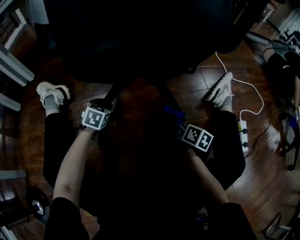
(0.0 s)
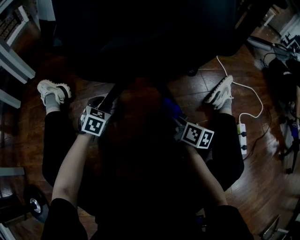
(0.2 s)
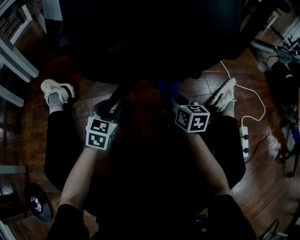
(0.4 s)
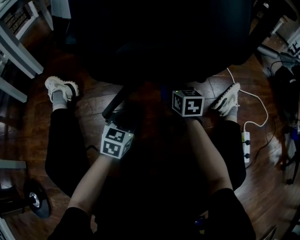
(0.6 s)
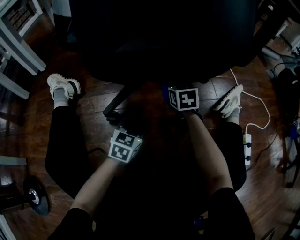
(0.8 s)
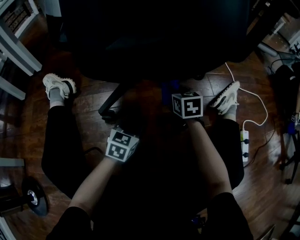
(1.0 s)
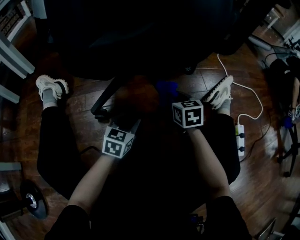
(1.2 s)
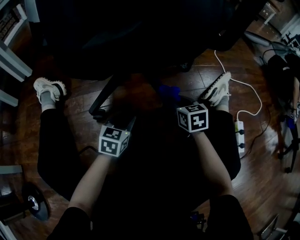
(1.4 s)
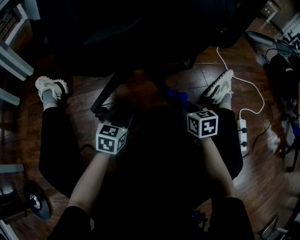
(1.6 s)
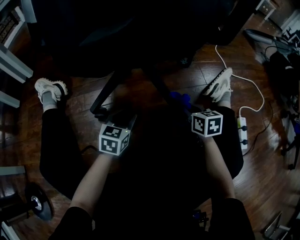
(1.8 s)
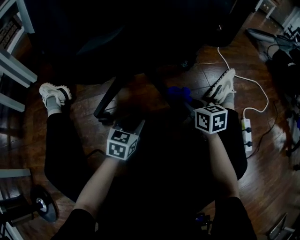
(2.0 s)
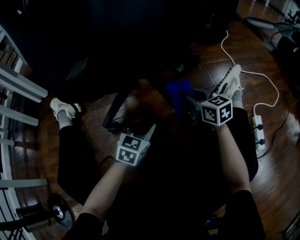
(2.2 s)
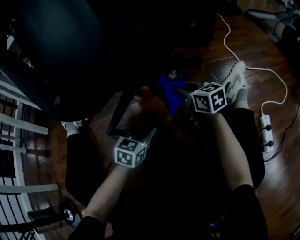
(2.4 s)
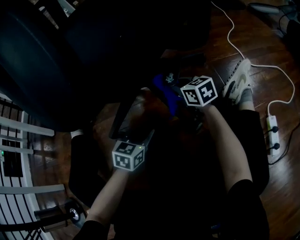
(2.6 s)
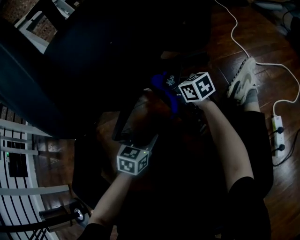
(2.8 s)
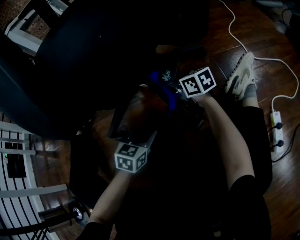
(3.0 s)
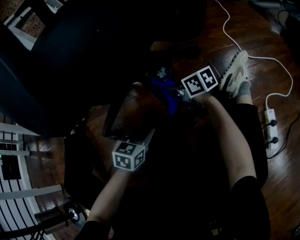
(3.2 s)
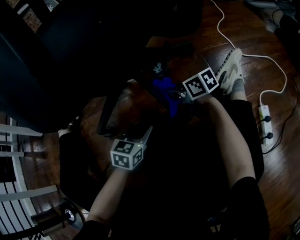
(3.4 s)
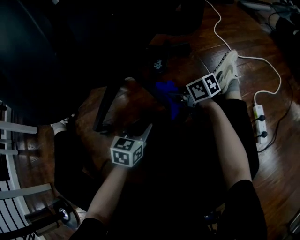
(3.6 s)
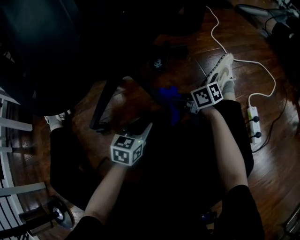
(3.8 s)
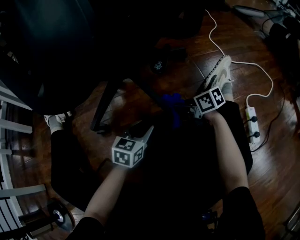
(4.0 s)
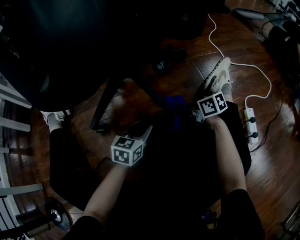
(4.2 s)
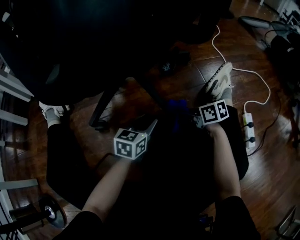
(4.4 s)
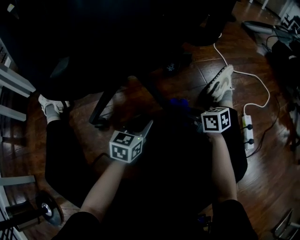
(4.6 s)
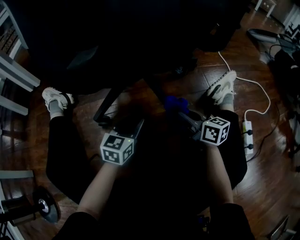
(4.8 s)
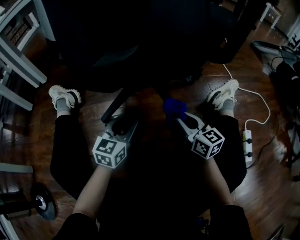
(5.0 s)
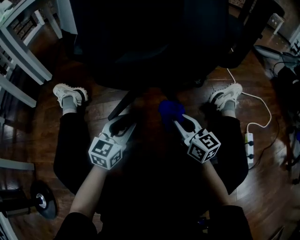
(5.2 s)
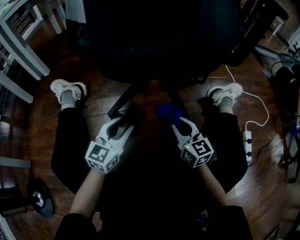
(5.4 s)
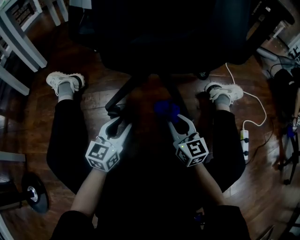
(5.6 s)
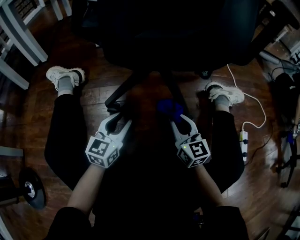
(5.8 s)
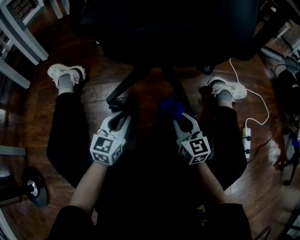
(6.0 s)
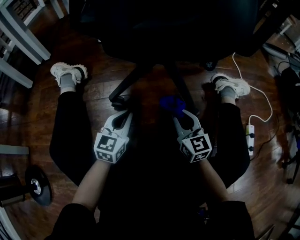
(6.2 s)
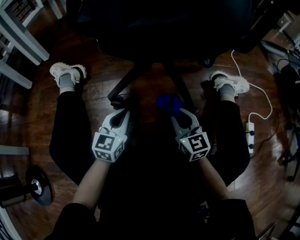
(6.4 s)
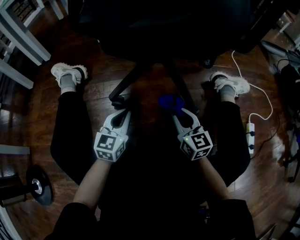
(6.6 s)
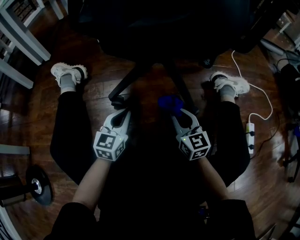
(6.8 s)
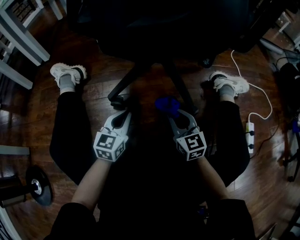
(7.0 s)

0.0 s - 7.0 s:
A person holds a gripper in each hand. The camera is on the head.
0.0 s - 1.4 s: The right gripper goes roughly 10 cm forward and upward, and twists some 50 degrees counterclockwise, seen from behind, while the left gripper travels to the right and backward by some 15 cm, and changes its angle by roughly 20 degrees.
1.4 s - 2.8 s: The right gripper is displaced forward by some 15 cm, and rotates roughly 30 degrees.
2.8 s - 4.2 s: The left gripper shifts by approximately 5 cm; the right gripper goes about 20 cm backward, and changes its angle by roughly 30 degrees.
4.2 s - 5.6 s: The two grippers go some 20 cm to the left and upward. The right gripper rotates some 50 degrees, while the left gripper turns by some 30 degrees.
5.6 s - 7.0 s: The left gripper closes up.

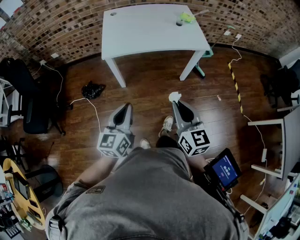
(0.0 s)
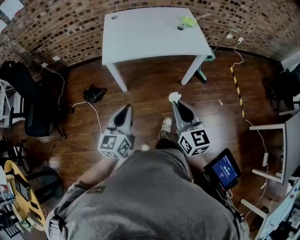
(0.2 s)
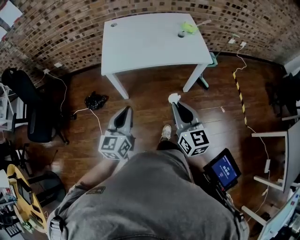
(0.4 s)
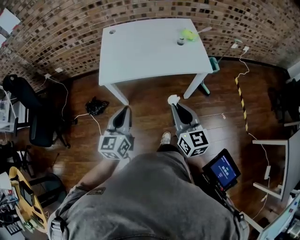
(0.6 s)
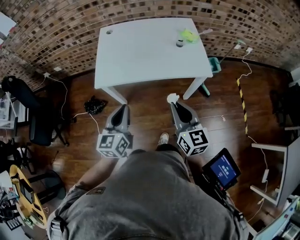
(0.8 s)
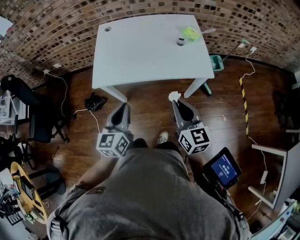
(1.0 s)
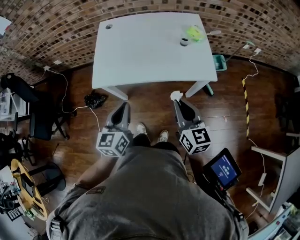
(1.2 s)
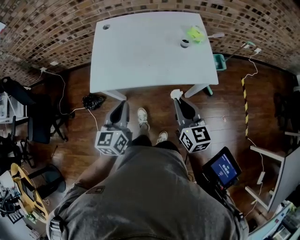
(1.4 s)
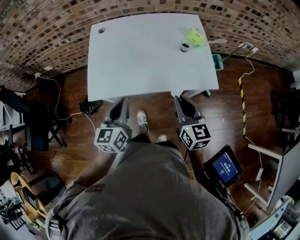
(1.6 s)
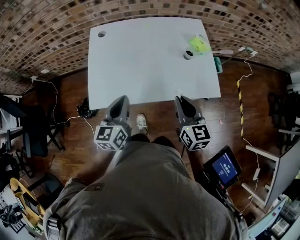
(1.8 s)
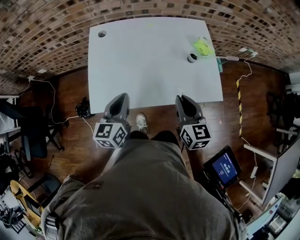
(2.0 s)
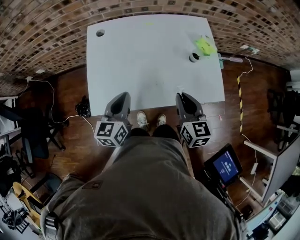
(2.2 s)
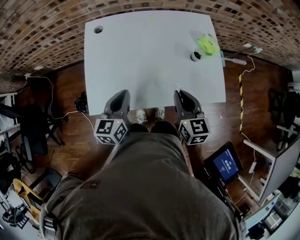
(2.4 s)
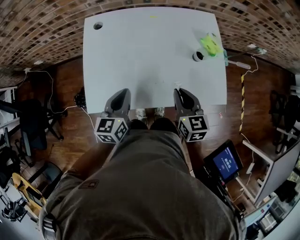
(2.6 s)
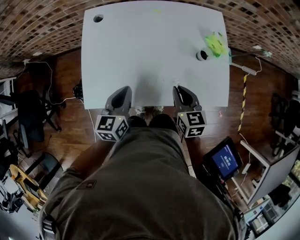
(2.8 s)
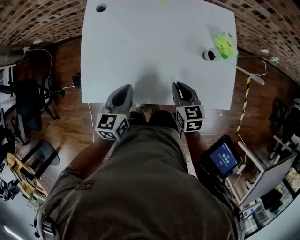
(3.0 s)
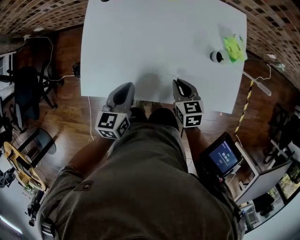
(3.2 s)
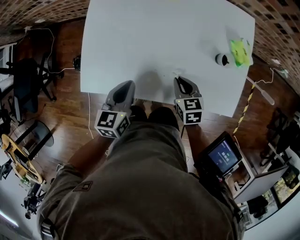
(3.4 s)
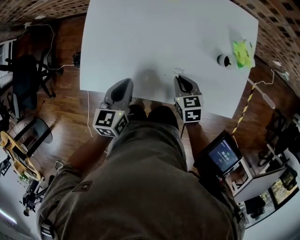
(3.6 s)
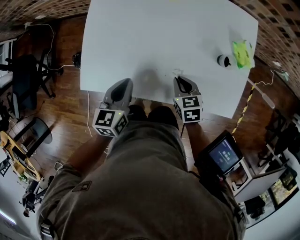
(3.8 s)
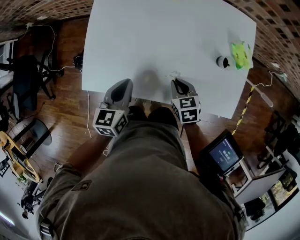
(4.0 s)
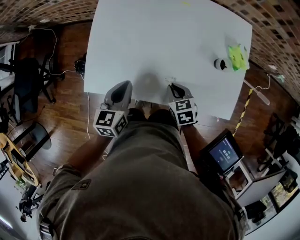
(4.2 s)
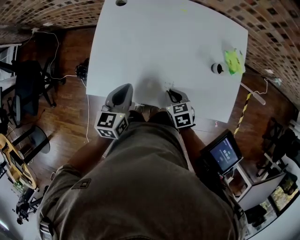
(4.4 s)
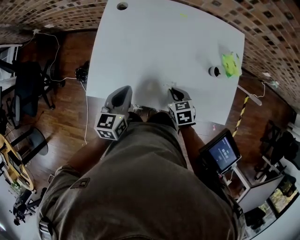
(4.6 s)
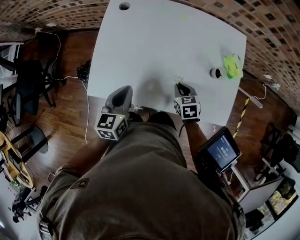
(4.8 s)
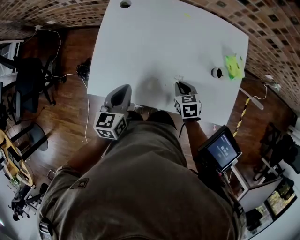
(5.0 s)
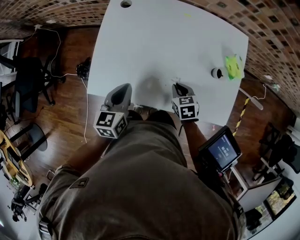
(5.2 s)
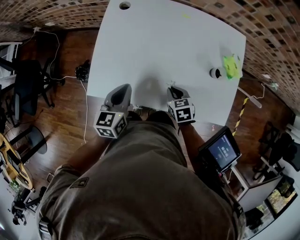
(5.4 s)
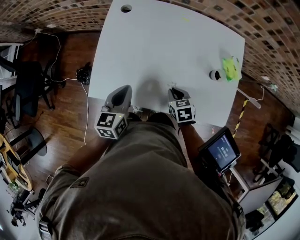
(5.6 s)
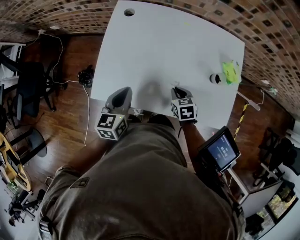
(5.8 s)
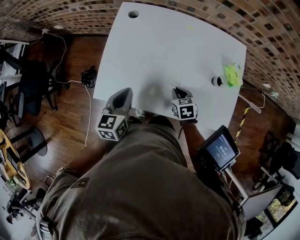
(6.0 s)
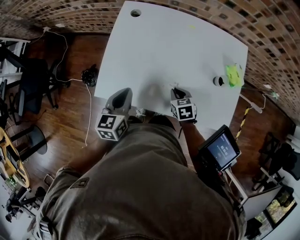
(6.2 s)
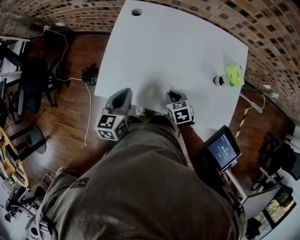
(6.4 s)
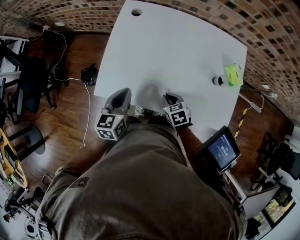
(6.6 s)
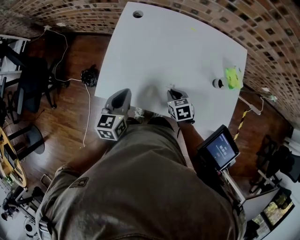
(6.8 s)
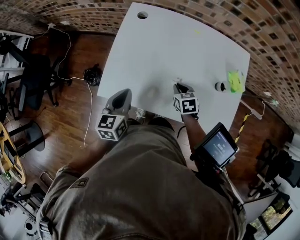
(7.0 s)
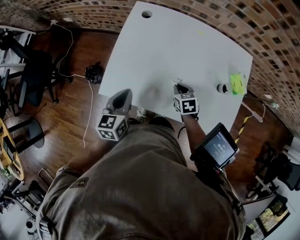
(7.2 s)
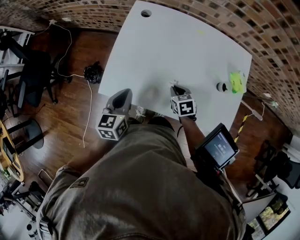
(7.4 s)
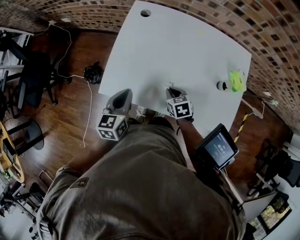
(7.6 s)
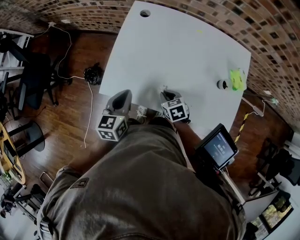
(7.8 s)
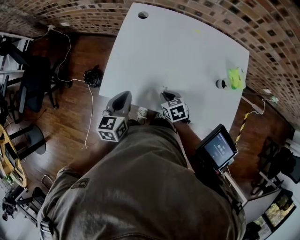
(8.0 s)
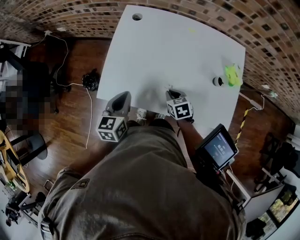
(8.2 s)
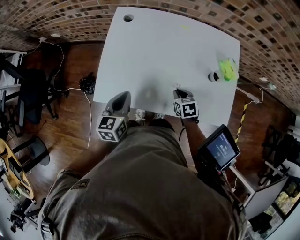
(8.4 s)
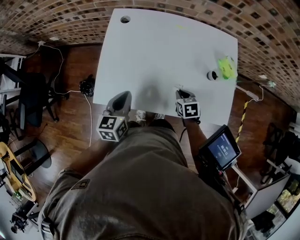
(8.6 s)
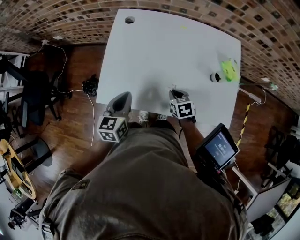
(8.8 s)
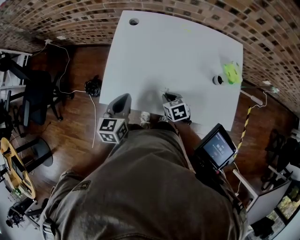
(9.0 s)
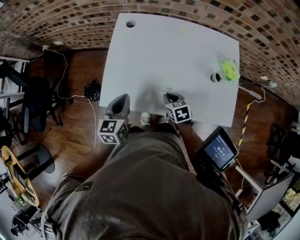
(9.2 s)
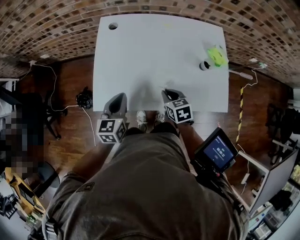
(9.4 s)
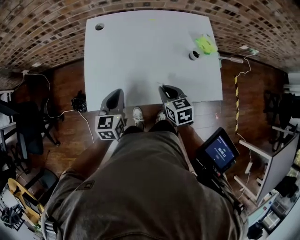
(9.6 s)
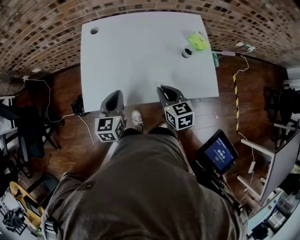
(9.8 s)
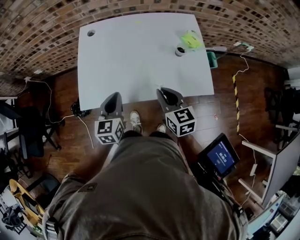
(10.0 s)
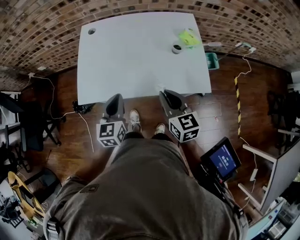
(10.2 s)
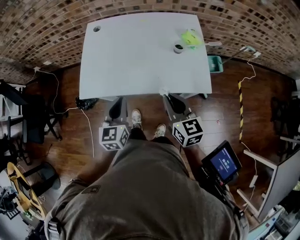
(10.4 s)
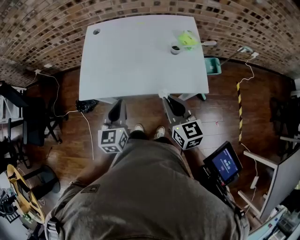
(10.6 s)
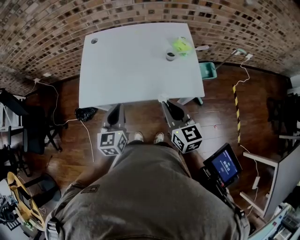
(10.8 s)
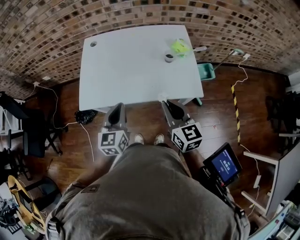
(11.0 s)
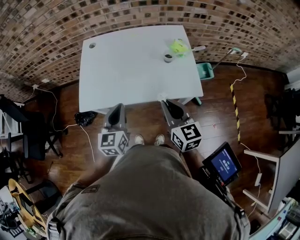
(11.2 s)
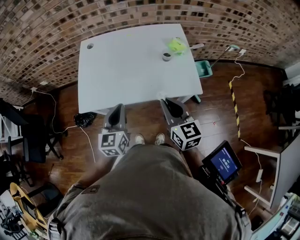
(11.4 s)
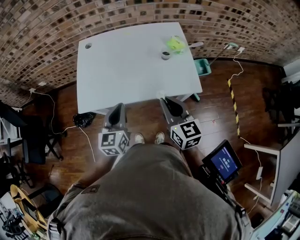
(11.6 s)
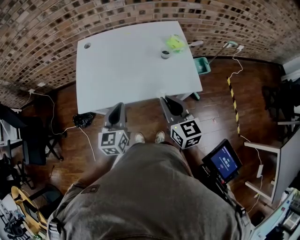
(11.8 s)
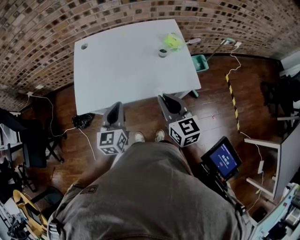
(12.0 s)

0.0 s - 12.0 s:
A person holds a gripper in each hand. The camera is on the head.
0.0 s - 1.6 s: The grippers both shift forward by roughly 35 cm.
1.6 s - 3.0 s: The grippers both shift forward and downward by some 20 cm. The right gripper swivels some 30 degrees.
3.0 s - 4.4 s: The right gripper moves downward and to the left, about 10 cm, and swivels roughly 20 degrees.
4.4 s - 6.0 s: The right gripper travels forward by some 5 cm.
6.0 s - 7.6 s: The right gripper moves to the left, about 5 cm.
7.6 s - 9.0 s: The right gripper moves roughly 10 cm to the right and comes back.
9.0 s - 10.4 s: The right gripper goes approximately 30 cm upward, backward and to the right, and points its fingers roughly 40 degrees further upward, while the left gripper travels backward, to the right and upward by roughly 20 cm.
10.4 s - 12.0 s: The grippers make only small movements.

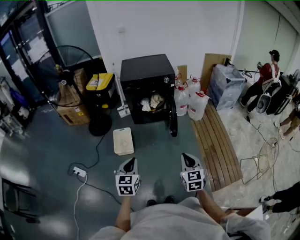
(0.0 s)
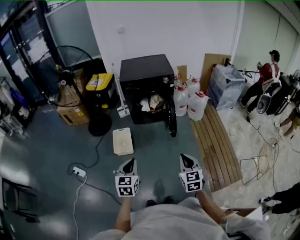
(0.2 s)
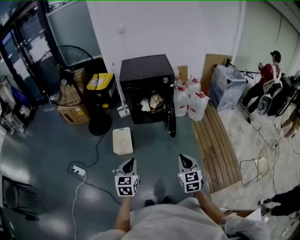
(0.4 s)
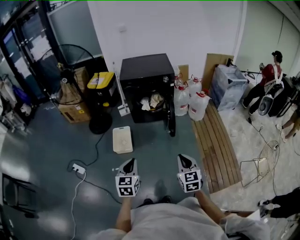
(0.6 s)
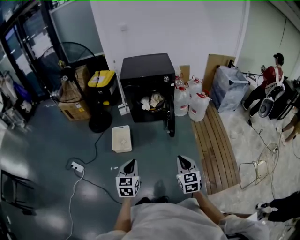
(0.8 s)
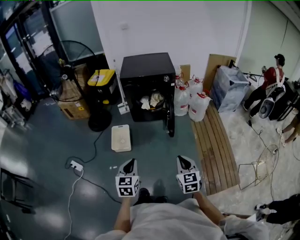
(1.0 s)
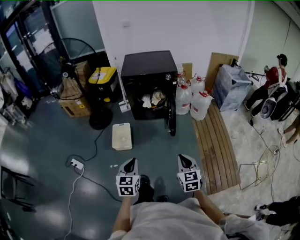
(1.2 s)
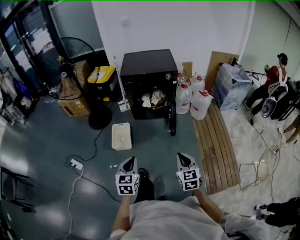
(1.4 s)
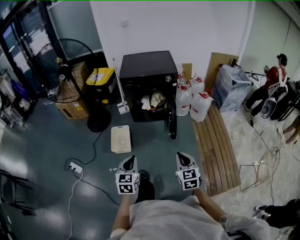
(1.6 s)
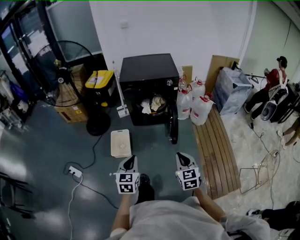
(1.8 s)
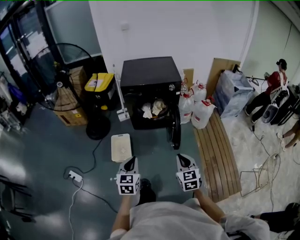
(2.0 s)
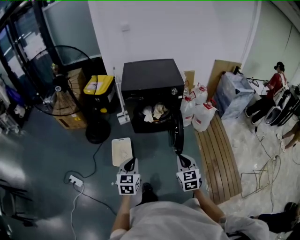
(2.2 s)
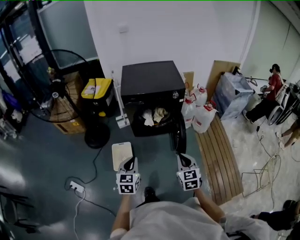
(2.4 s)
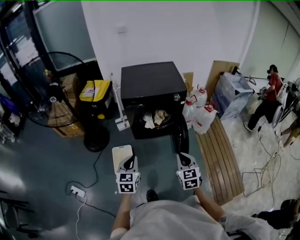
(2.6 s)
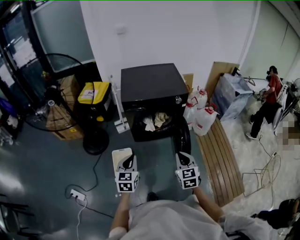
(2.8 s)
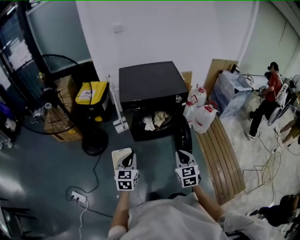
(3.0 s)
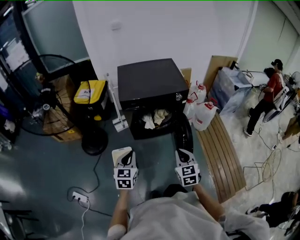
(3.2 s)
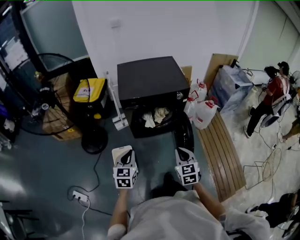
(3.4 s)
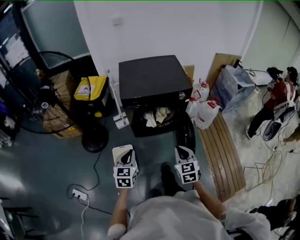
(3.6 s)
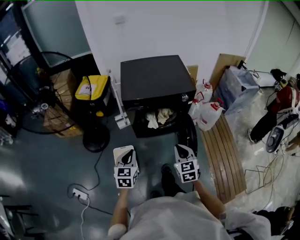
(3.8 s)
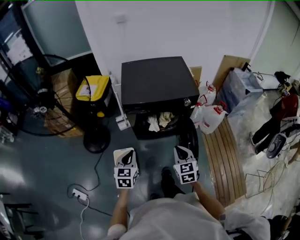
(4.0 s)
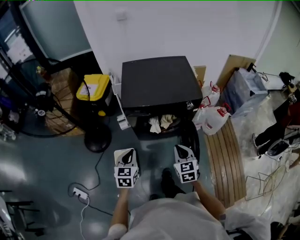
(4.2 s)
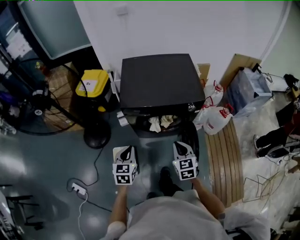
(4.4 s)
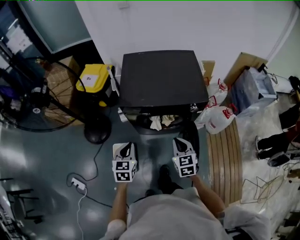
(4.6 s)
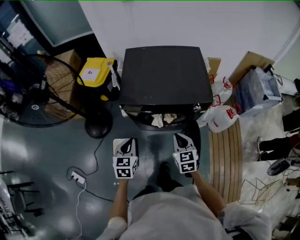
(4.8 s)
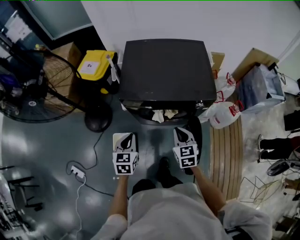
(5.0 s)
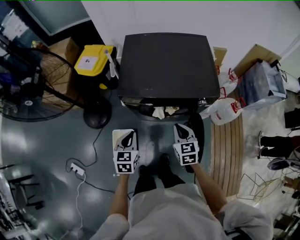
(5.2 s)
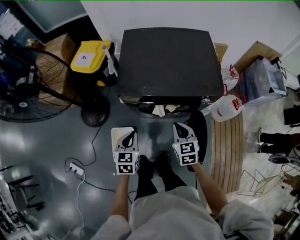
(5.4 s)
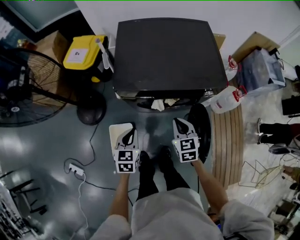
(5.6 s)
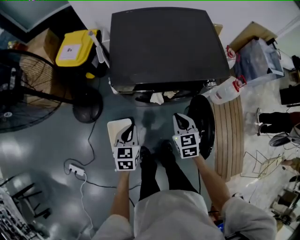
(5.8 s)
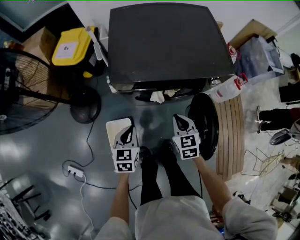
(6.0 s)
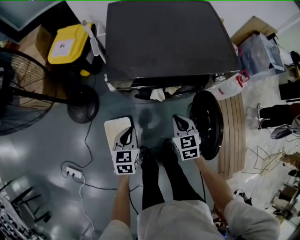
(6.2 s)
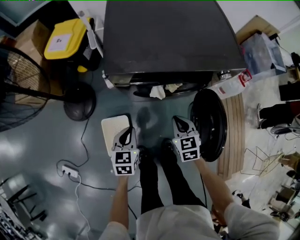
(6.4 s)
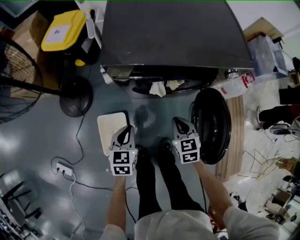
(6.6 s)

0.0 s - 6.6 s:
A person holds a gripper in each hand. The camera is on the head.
0.0 s - 1.6 s: Both grippers move forward, about 5 cm.
1.6 s - 3.2 s: The grippers both shift forward and to the left by approximately 35 cm.
3.2 s - 5.0 s: The two grippers go approximately 30 cm forward.
5.0 s - 6.6 s: The two grippers go approximately 25 cm downward.
